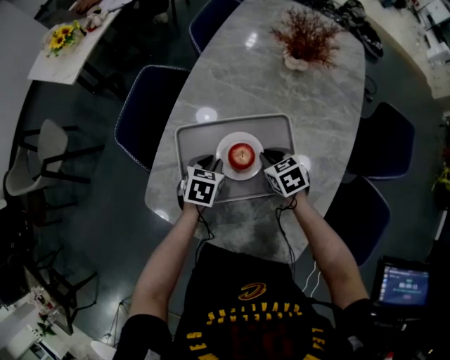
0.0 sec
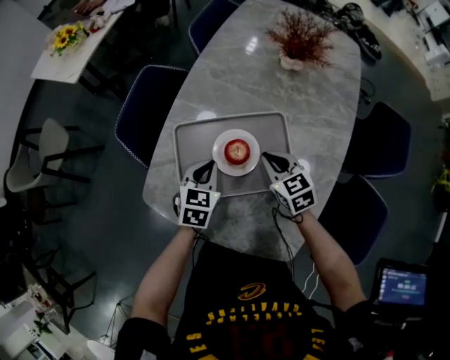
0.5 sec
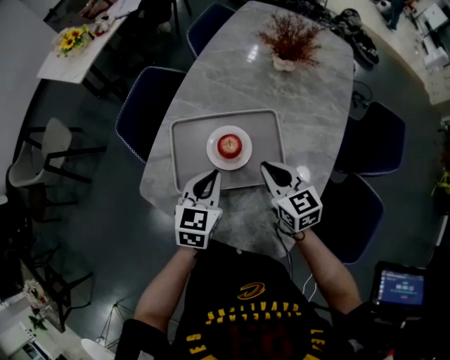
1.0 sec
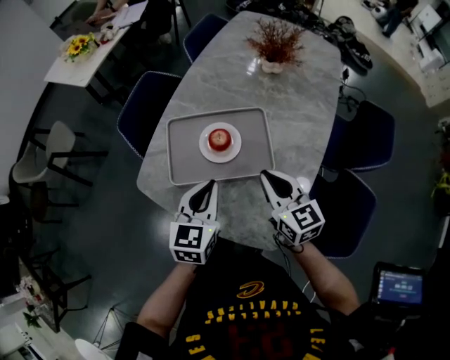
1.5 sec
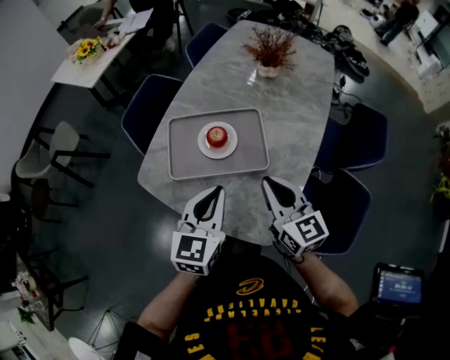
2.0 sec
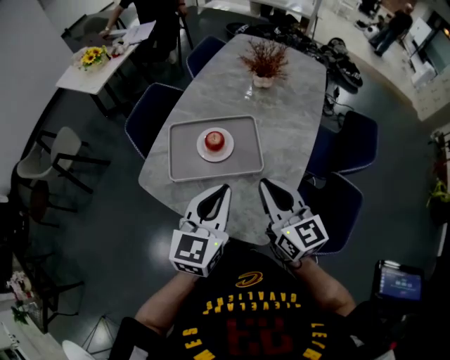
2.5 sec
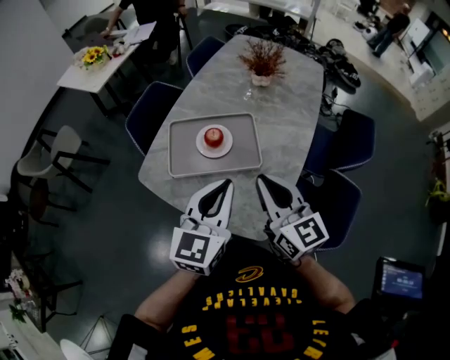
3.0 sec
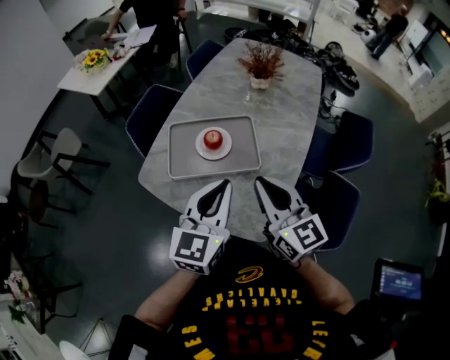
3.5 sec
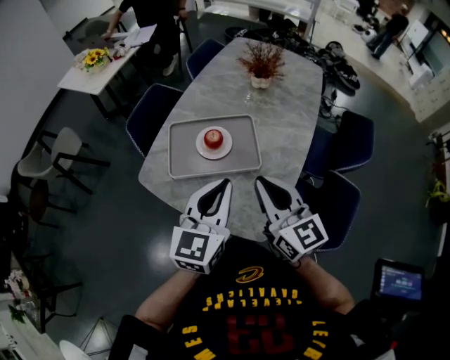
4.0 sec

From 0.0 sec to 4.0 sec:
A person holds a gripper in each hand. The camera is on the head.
From 0.0 sec to 2.0 sec: The two grippers go approximately 30 cm upward and backward. The left gripper tips its fingers upward by some 40 degrees. Meanwhile the right gripper tilts its fingers some 40 degrees upward.
From 2.0 sec to 4.0 sec: Both grippers move upward, some 5 cm.

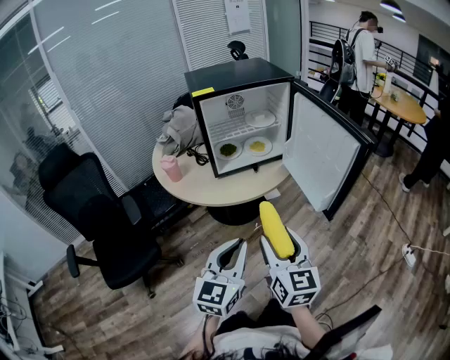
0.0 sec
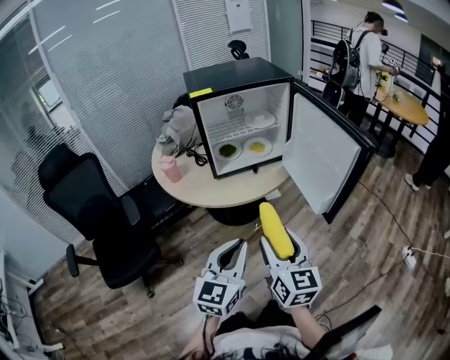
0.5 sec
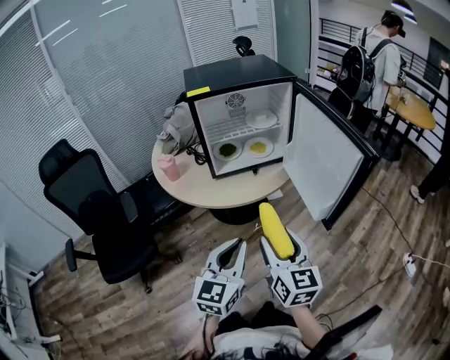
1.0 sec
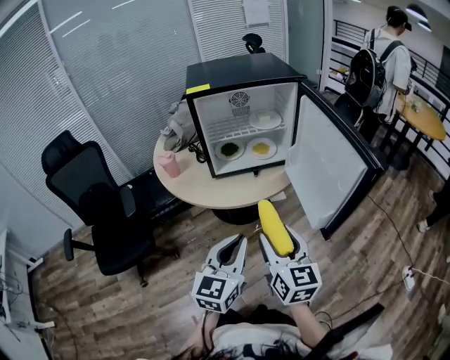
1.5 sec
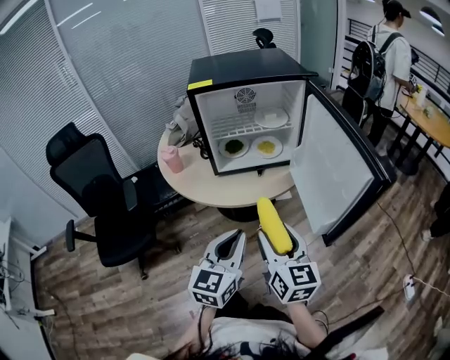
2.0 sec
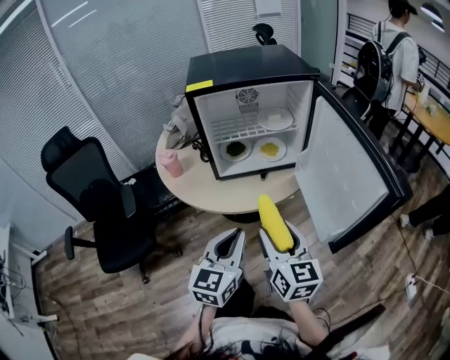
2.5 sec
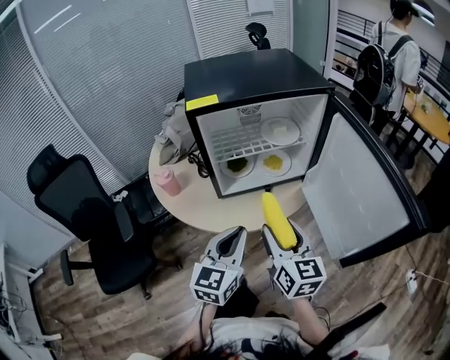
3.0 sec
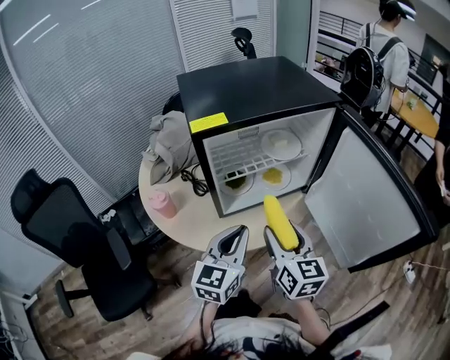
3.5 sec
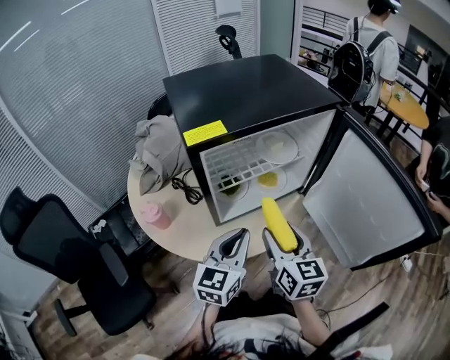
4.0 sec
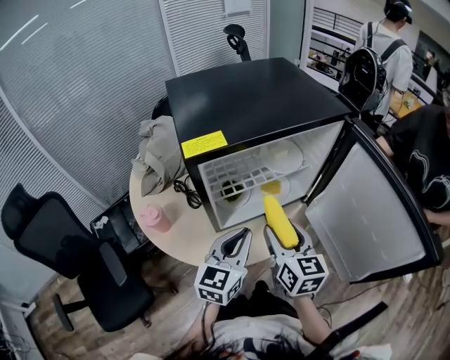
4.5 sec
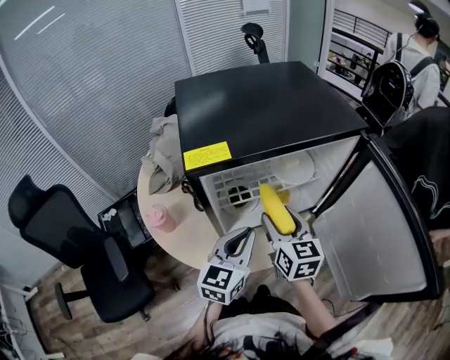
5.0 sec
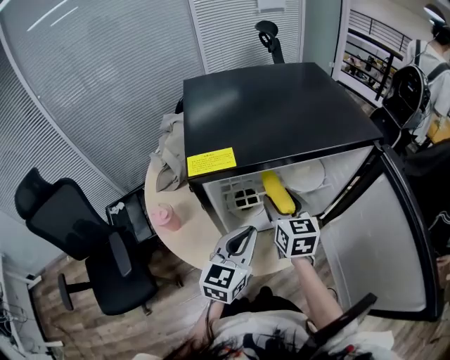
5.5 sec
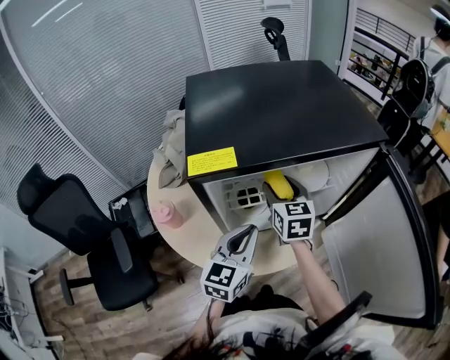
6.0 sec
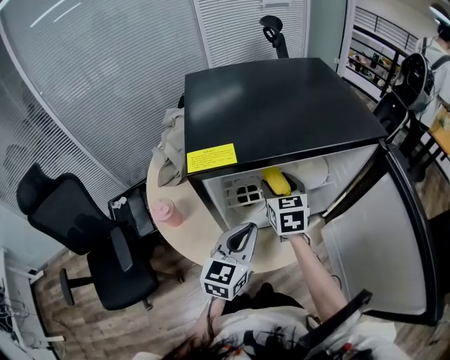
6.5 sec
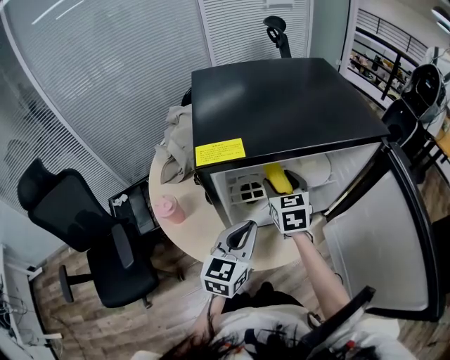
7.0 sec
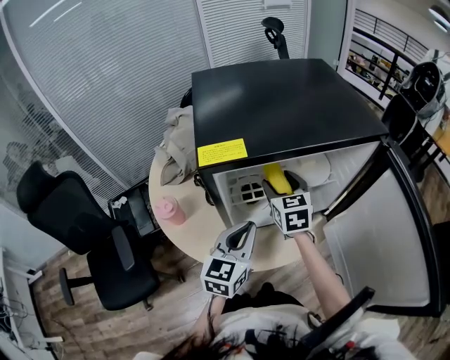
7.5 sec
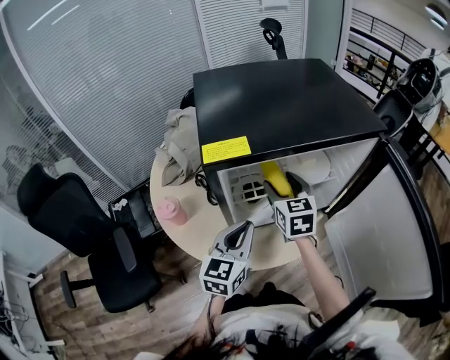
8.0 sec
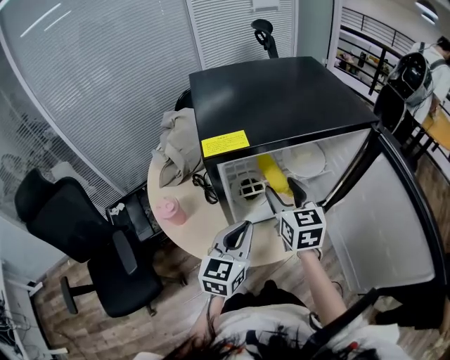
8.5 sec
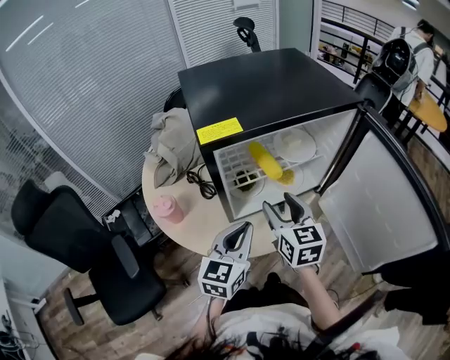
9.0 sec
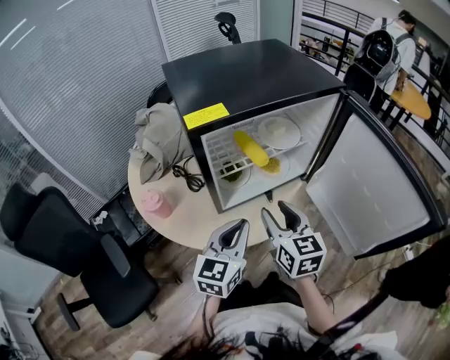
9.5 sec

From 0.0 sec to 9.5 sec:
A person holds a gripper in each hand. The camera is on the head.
From 0.0 sec to 2.0 sec: Both grippers move forward and to the right, approximately 10 cm.
From 2.0 sec to 4.0 sec: The grippers both shift forward and to the left by some 25 cm.
From 4.0 sec to 5.5 sec: The left gripper shifts about 10 cm forward. Meanwhile the right gripper moves forward, about 20 cm.
From 5.5 sec to 7.5 sec: The grippers stay close to where they were, moving slightly.
From 7.5 sec to 9.5 sec: The left gripper heads backward, covering approximately 10 cm. Meanwhile the right gripper heads backward, covering roughly 20 cm.

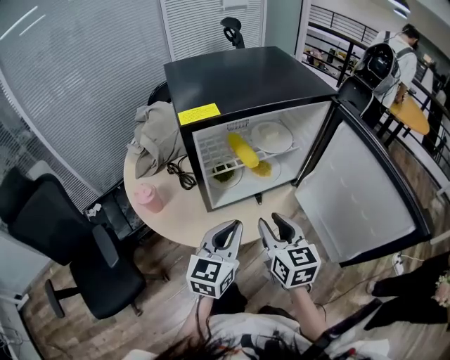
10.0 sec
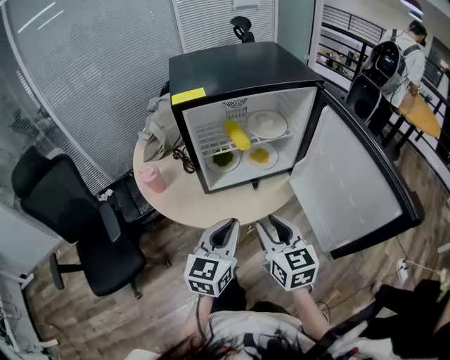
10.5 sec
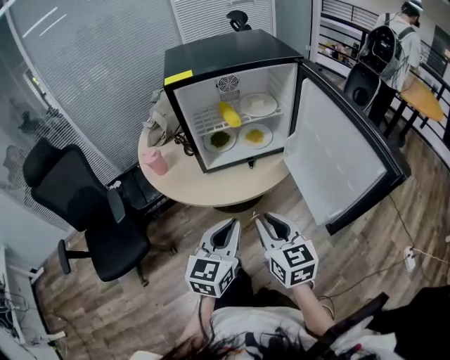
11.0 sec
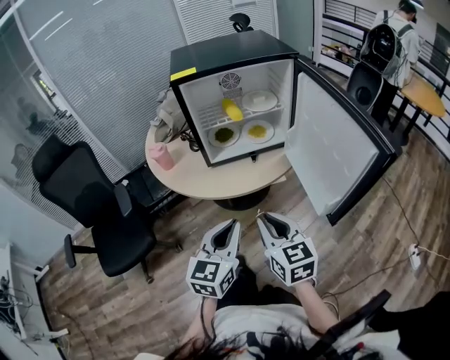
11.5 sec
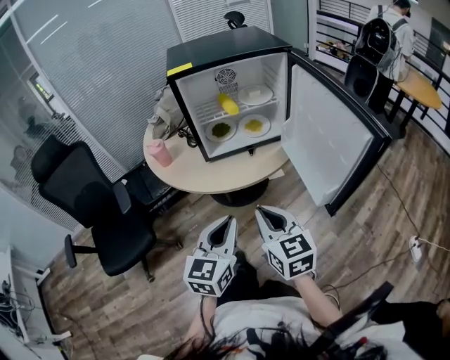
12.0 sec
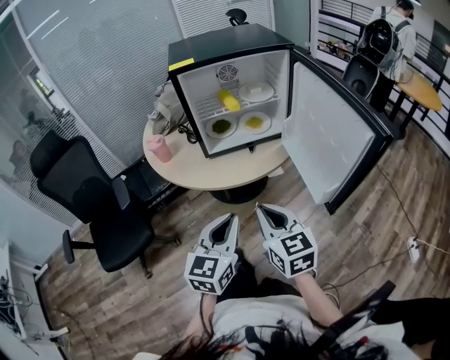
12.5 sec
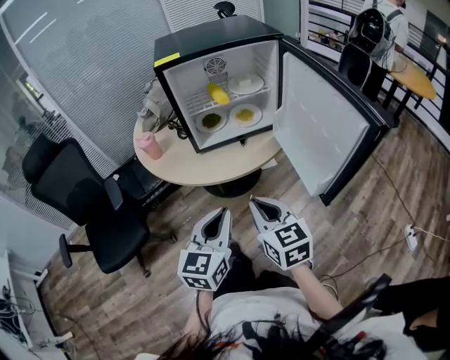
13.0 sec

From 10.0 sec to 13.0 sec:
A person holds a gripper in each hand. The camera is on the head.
From 10.0 sec to 11.5 sec: Both grippers move backward, about 20 cm. The right gripper closes its fingers.
From 11.5 sec to 13.0 sec: The grippers make only small movements.

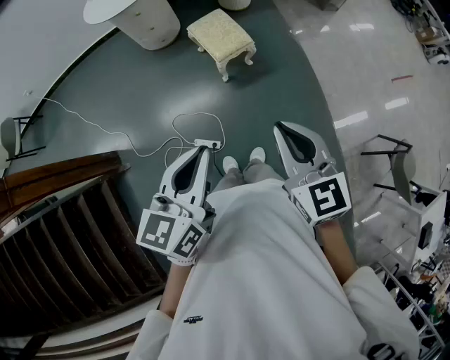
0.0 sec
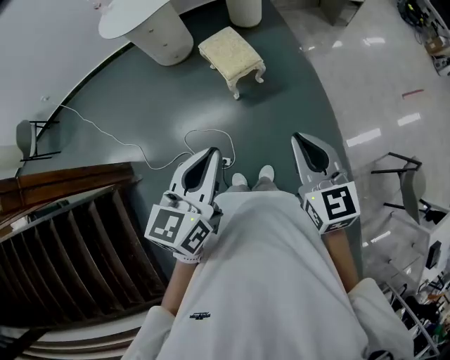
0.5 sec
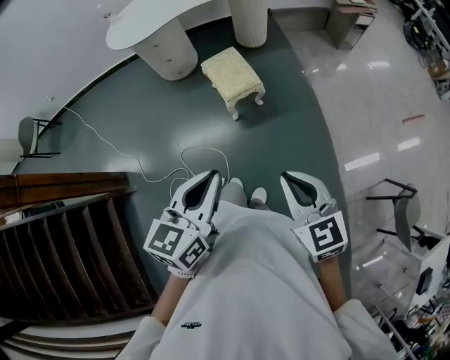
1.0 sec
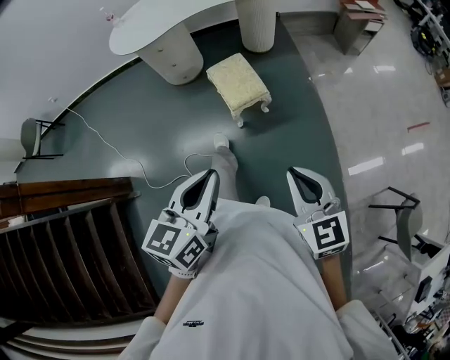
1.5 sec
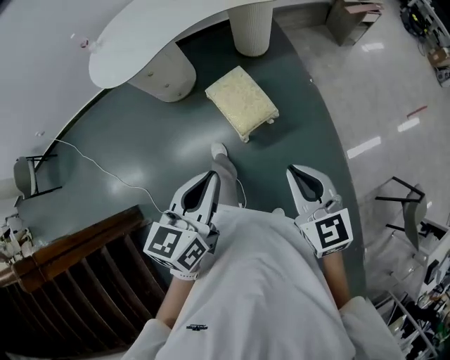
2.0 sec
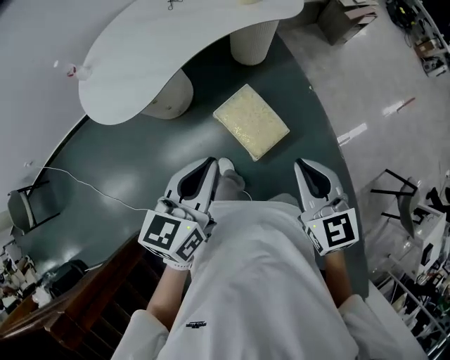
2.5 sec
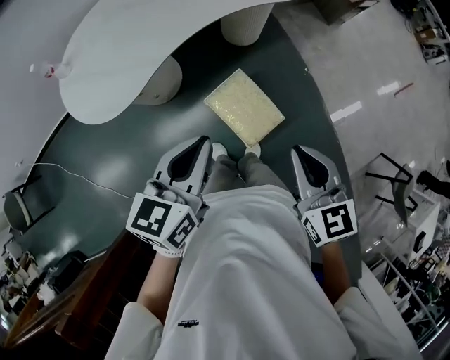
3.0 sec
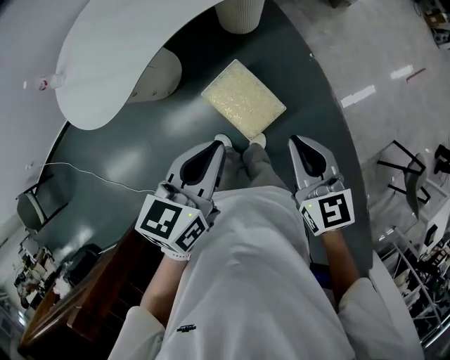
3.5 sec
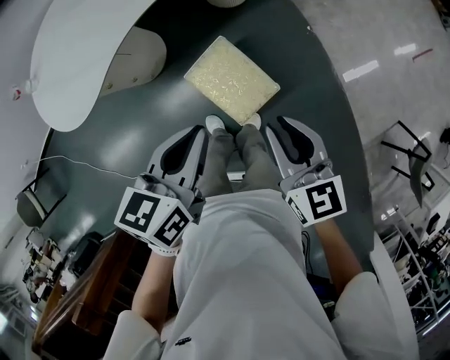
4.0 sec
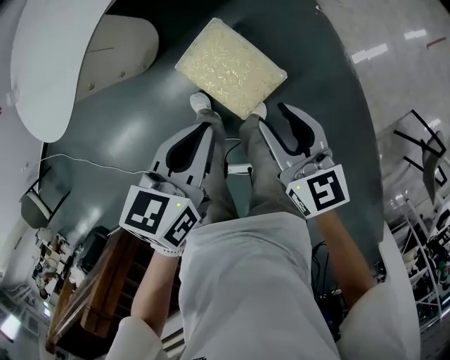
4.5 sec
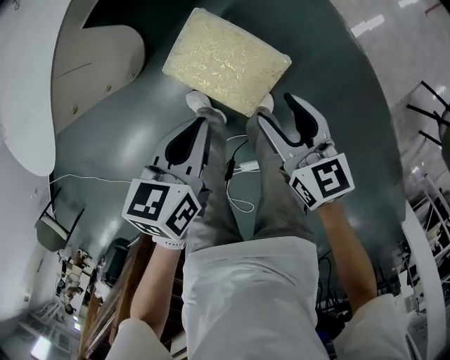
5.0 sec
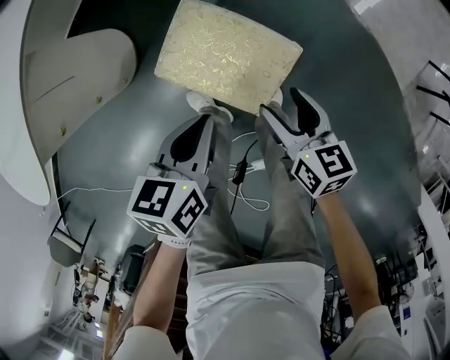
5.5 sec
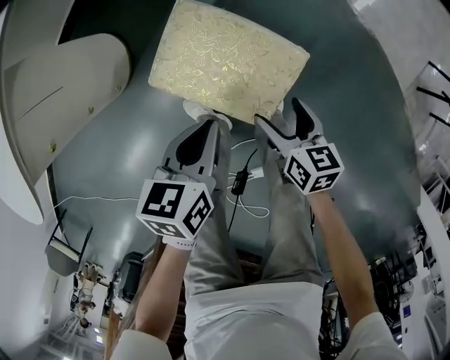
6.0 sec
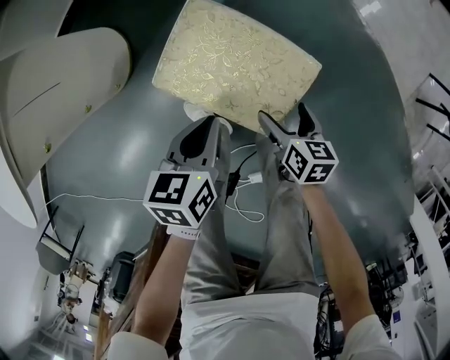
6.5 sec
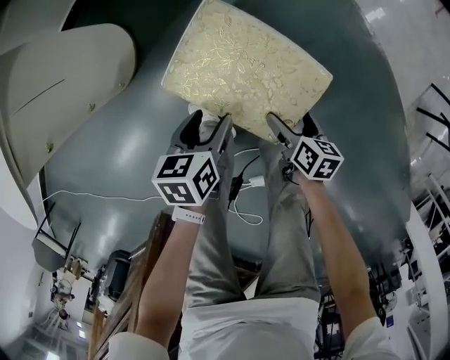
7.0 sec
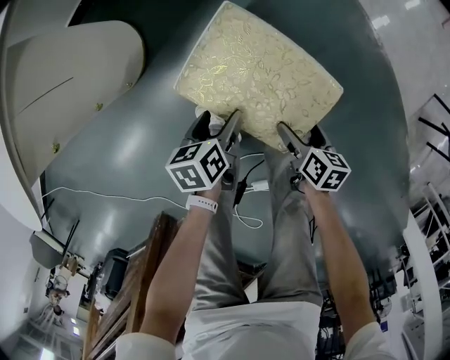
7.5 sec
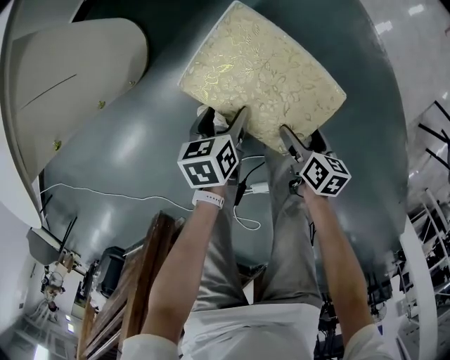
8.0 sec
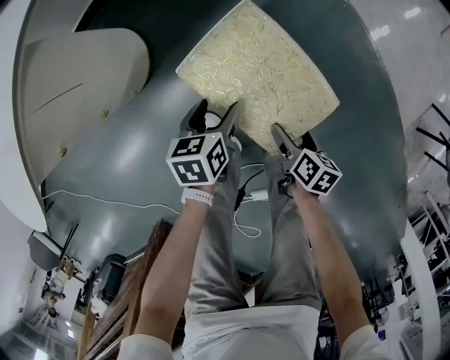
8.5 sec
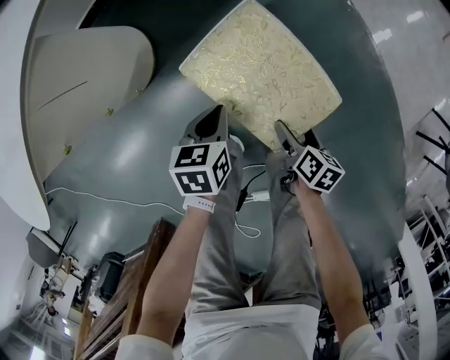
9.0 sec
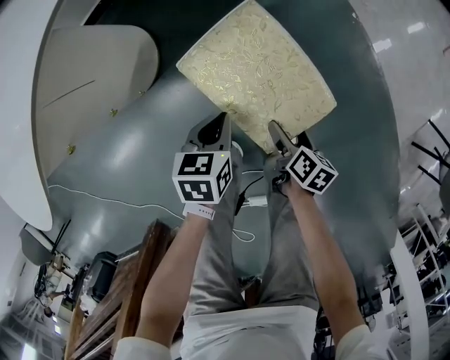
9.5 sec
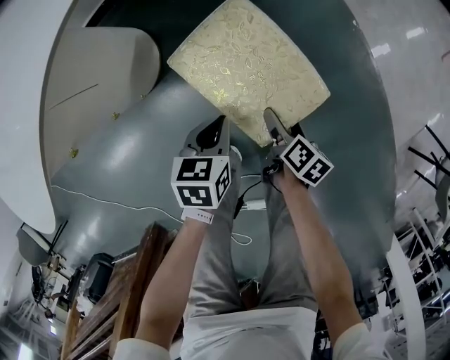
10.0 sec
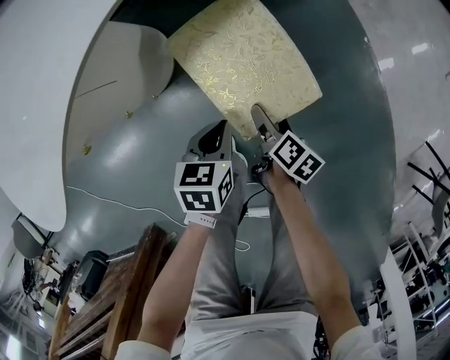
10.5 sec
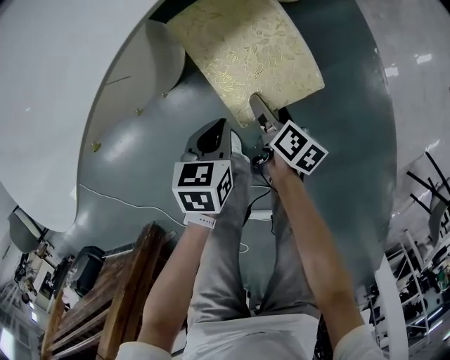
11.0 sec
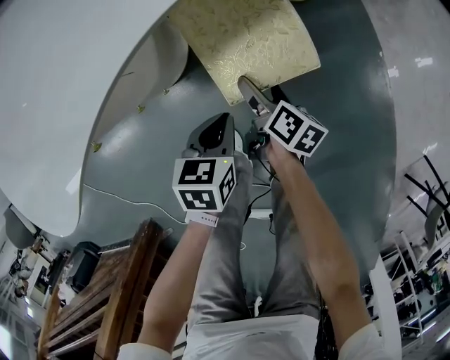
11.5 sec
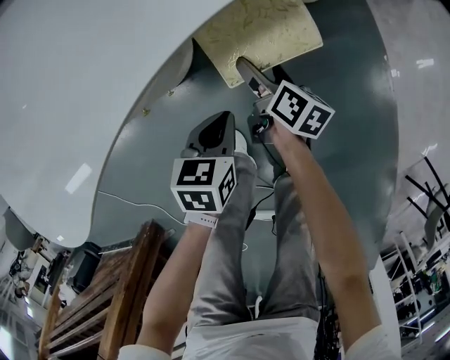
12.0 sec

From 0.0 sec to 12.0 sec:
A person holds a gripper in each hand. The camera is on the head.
From 0.0 sec to 2.0 sec: The grippers both shift forward by roughly 30 cm.
From 2.0 sec to 4.0 sec: The right gripper heads forward and downward, covering roughly 30 cm. Meanwhile the left gripper is displaced forward by some 30 cm, and changes its angle by approximately 20 degrees.
From 4.0 sec to 6.0 sec: Both grippers move downward, roughly 40 cm. The right gripper rotates roughly 40 degrees, and opens, while the left gripper rotates roughly 20 degrees.
From 6.0 sec to 8.0 sec: The right gripper is displaced downward by about 10 cm. Meanwhile the left gripper shifts about 15 cm downward, changes its angle by roughly 20 degrees, and opens its fingers.
From 8.0 sec to 10.0 sec: The right gripper shifts some 15 cm forward and to the left. The left gripper shifts some 10 cm forward and upward, and closes its fingers.
From 10.0 sec to 12.0 sec: The right gripper travels to the left and forward by roughly 30 cm, and changes its angle by about 30 degrees; the left gripper goes about 15 cm to the left.
